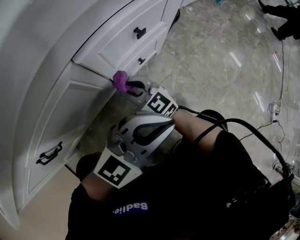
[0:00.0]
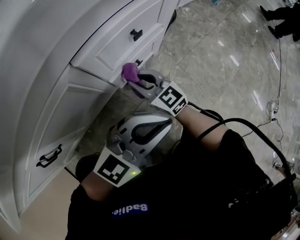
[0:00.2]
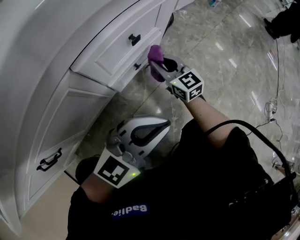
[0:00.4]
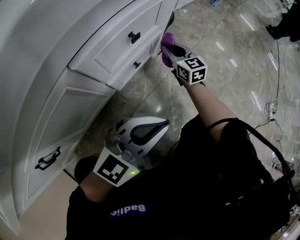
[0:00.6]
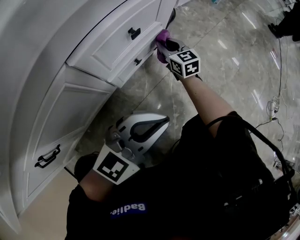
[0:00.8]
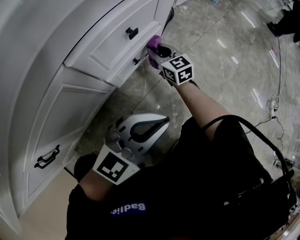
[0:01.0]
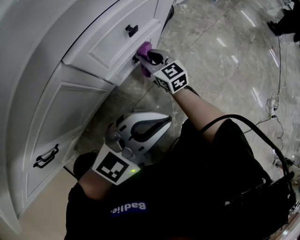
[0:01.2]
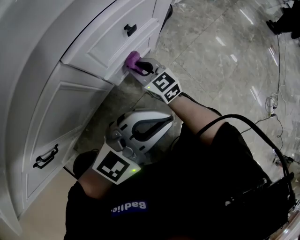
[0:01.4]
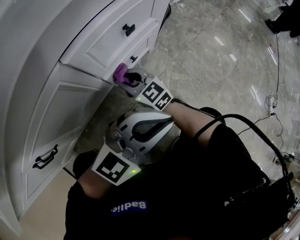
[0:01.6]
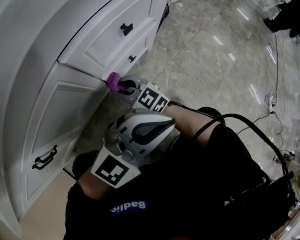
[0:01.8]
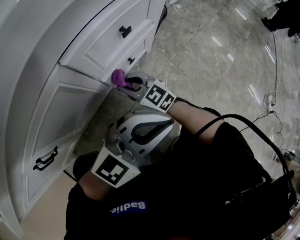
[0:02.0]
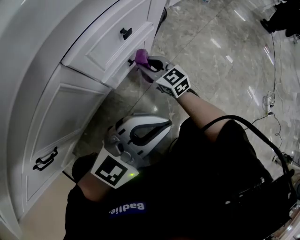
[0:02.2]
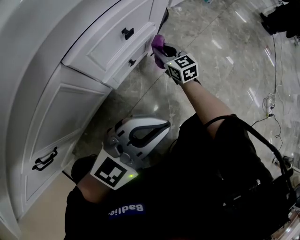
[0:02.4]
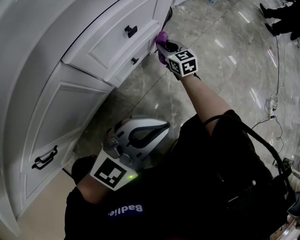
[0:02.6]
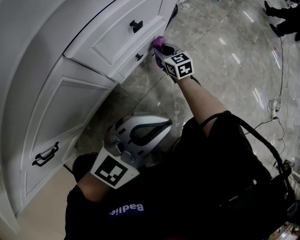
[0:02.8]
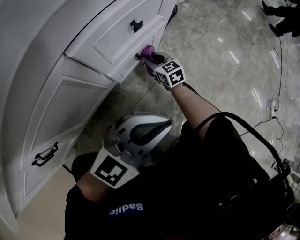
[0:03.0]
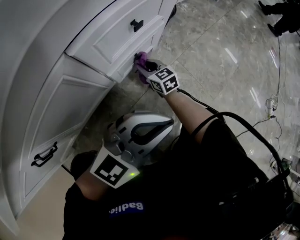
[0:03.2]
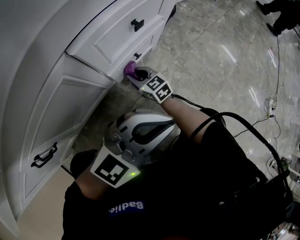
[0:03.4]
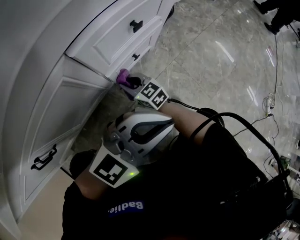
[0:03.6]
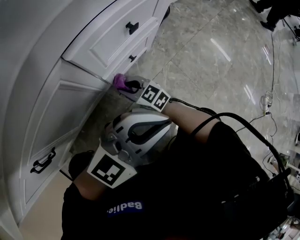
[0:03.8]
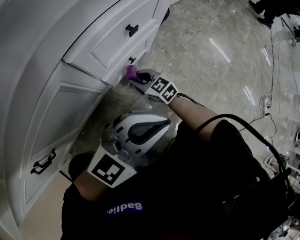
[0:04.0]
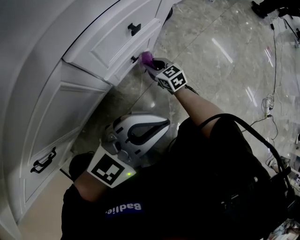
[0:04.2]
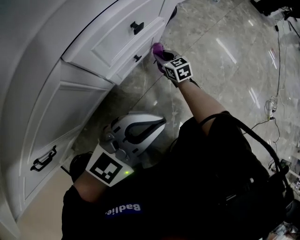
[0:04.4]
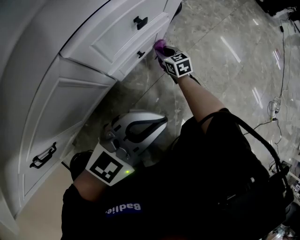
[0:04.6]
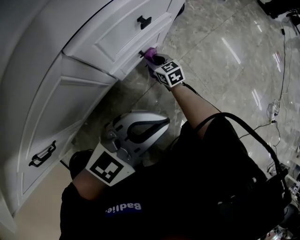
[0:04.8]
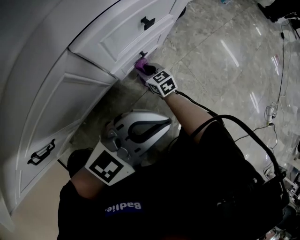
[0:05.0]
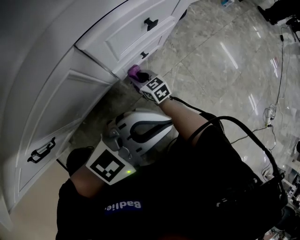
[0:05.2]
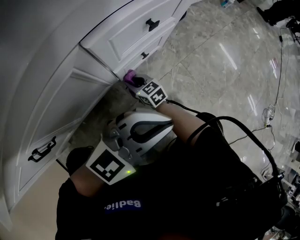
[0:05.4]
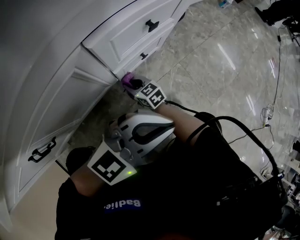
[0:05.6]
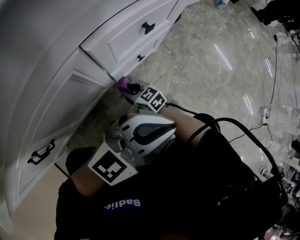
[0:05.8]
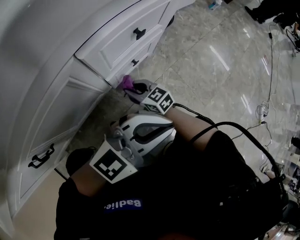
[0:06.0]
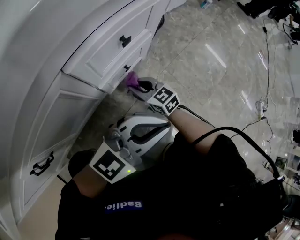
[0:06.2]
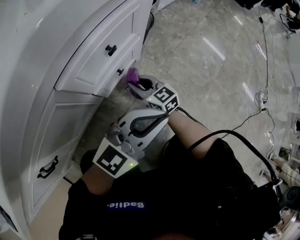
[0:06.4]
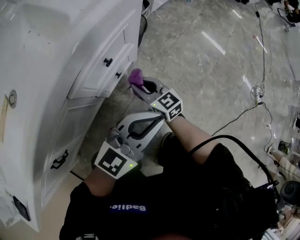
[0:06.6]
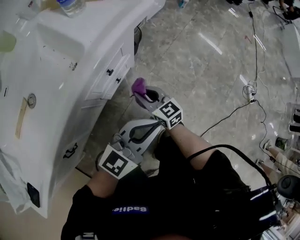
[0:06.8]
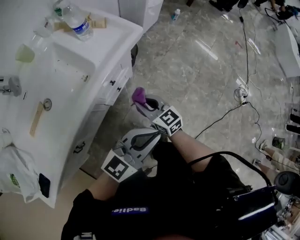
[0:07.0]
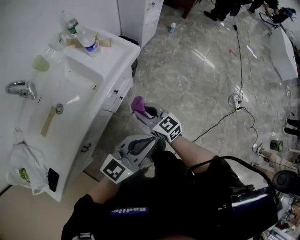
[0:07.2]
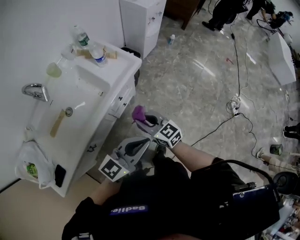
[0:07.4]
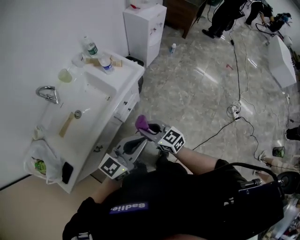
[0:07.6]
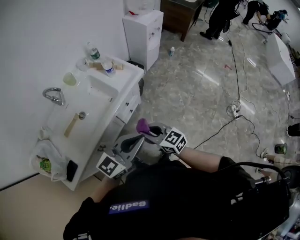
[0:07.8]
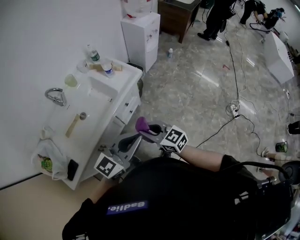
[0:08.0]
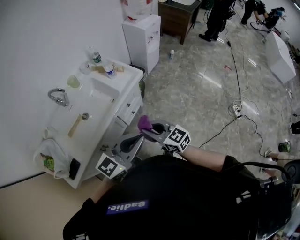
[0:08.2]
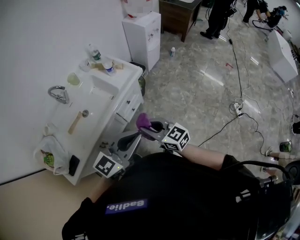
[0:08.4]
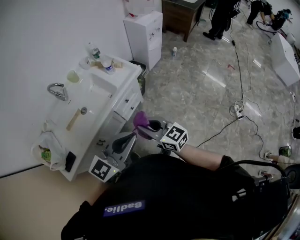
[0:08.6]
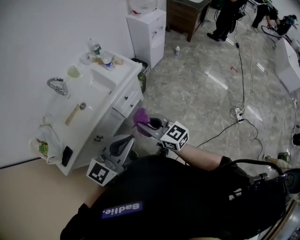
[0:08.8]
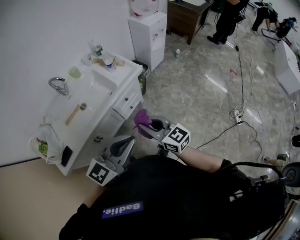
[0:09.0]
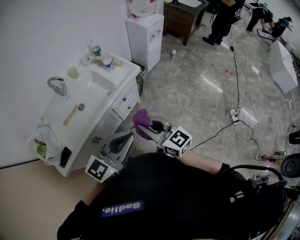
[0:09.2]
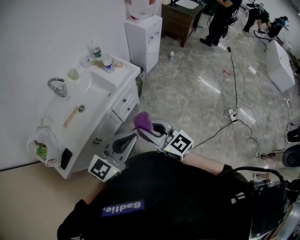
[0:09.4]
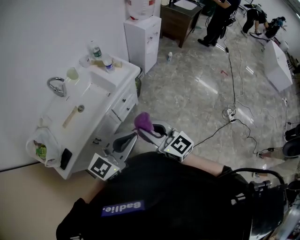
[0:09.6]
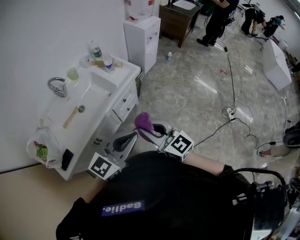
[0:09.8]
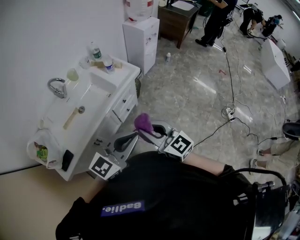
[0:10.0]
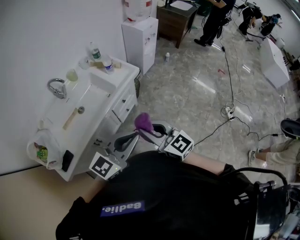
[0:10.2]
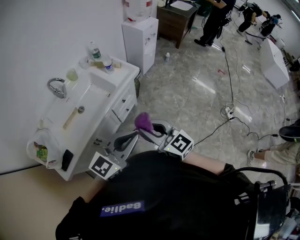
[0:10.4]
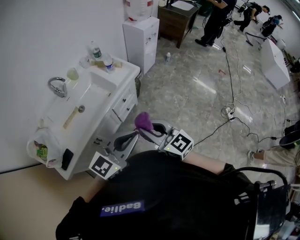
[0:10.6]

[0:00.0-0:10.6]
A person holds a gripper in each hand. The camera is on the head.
0:00.0 to 0:01.6: The right gripper travels forward and back again, some 20 cm each way.
0:01.6 to 0:03.0: The right gripper shifts by about 15 cm, and changes its angle by about 20 degrees.
0:04.6 to 0:06.0: The right gripper shifts by approximately 20 cm, and turns by some 30 degrees.
0:06.0 to 0:07.6: The two grippers go about 60 cm upward. The left gripper turns by roughly 20 degrees.
0:07.6 to 0:09.0: Both grippers travel together upward and backward, approximately 15 cm.
0:09.0 to 0:10.6: The left gripper shifts by about 5 cm, while the right gripper heads backward, covering approximately 5 cm.

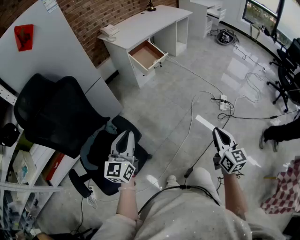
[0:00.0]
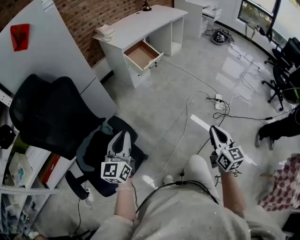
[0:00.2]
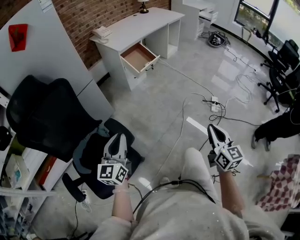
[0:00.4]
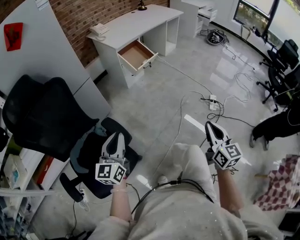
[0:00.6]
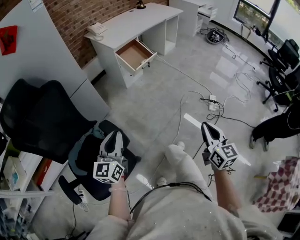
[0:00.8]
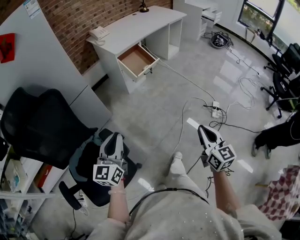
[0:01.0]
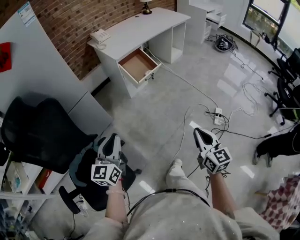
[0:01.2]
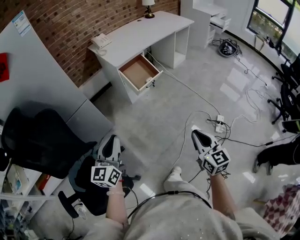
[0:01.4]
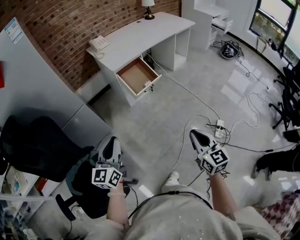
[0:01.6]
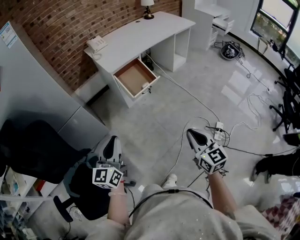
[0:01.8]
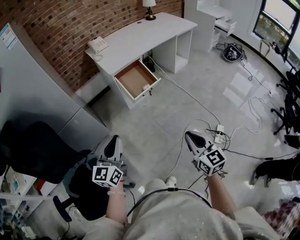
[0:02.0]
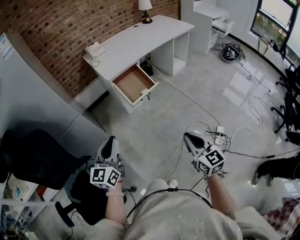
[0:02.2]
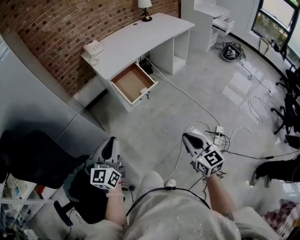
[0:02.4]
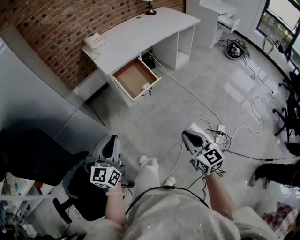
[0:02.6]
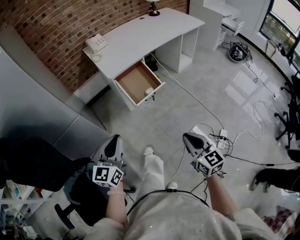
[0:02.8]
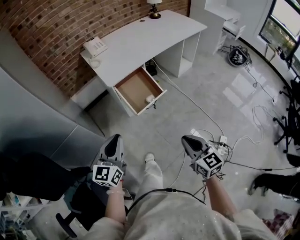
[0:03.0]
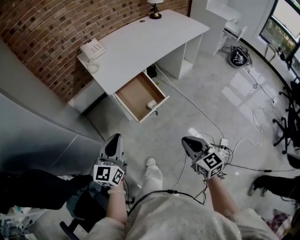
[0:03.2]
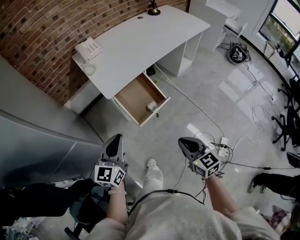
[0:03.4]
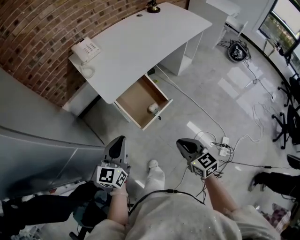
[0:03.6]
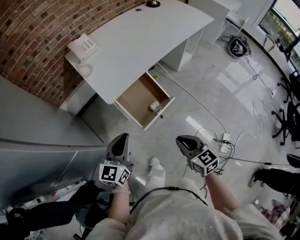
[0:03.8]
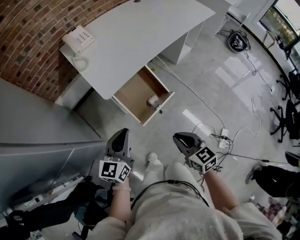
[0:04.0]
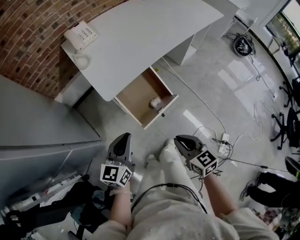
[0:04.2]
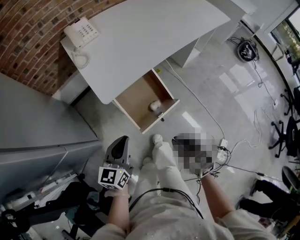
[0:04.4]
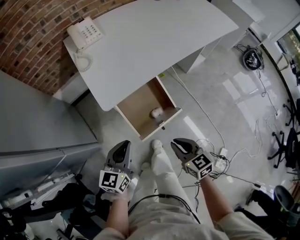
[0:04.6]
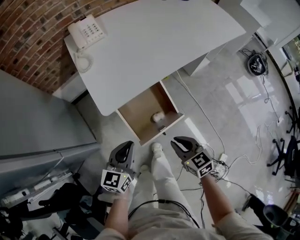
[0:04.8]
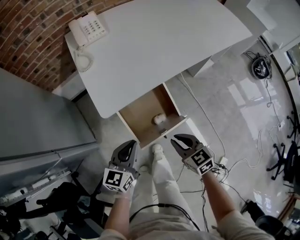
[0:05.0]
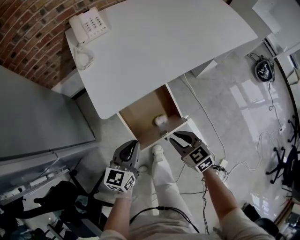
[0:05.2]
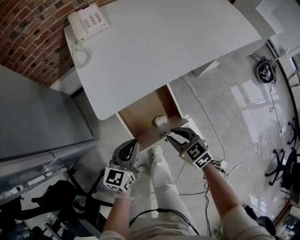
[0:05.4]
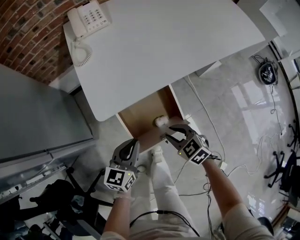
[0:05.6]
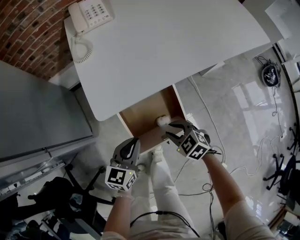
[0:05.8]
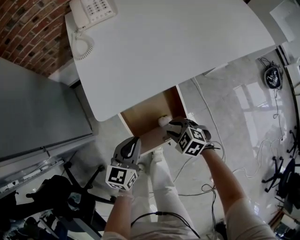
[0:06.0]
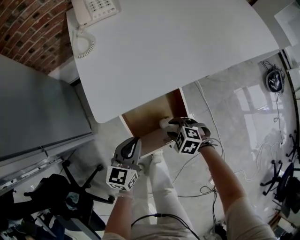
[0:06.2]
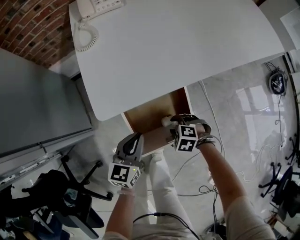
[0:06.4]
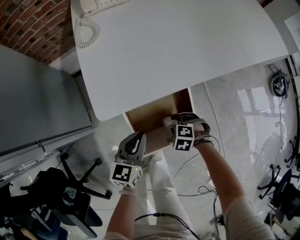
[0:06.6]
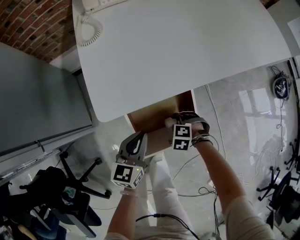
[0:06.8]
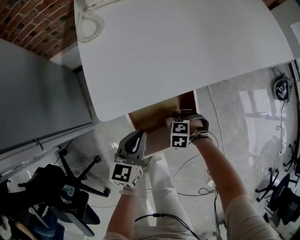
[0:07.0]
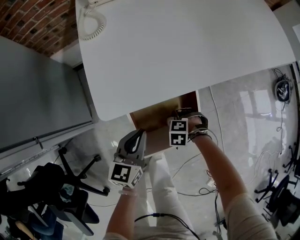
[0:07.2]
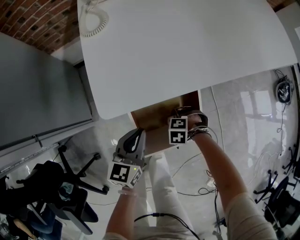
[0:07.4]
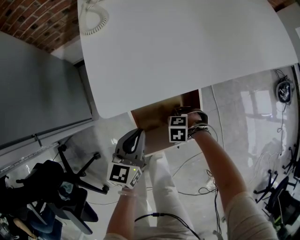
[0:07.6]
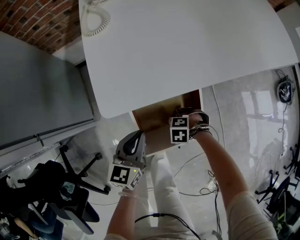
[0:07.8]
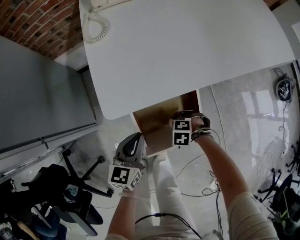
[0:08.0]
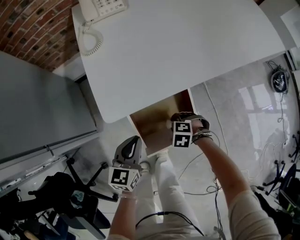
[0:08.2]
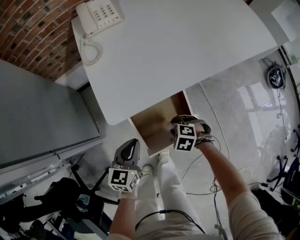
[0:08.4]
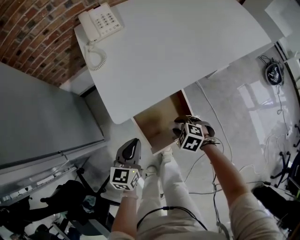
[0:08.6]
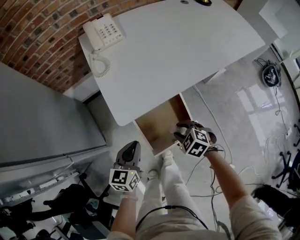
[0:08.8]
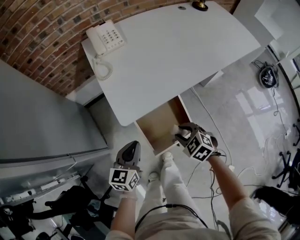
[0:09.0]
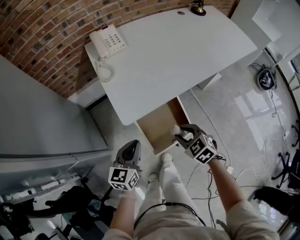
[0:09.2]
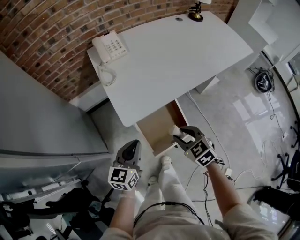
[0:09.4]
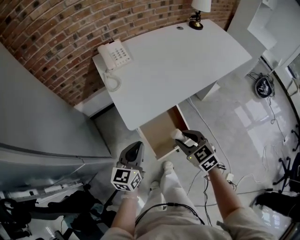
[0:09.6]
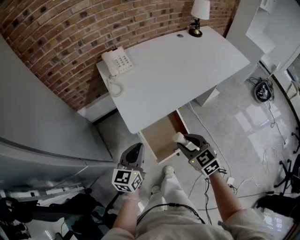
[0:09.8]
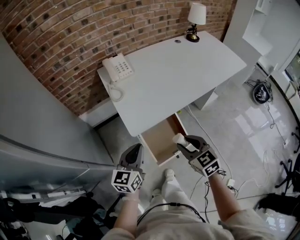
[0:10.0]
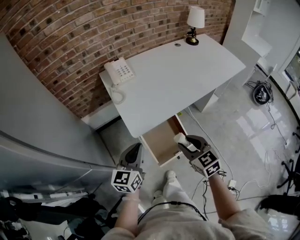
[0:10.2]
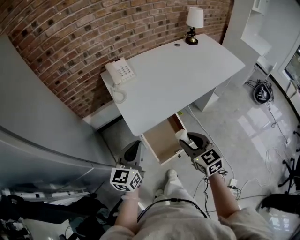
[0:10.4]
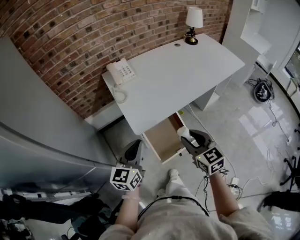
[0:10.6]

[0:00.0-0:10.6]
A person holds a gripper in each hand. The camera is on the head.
0:00.0 to 0:01.6: The grippers both shift forward by about 25 cm.
0:01.6 to 0:03.0: The grippers both shift forward by roughly 20 cm.
0:03.0 to 0:04.6: Both grippers move forward and downward, roughly 30 cm. The right gripper changes its angle by some 20 degrees.
0:04.6 to 0:06.0: The left gripper is displaced downward, forward and to the right by approximately 15 cm. The right gripper shifts about 20 cm downward and forward, swivels approximately 50 degrees, and opens.
0:06.0 to 0:07.6: The right gripper is displaced downward by roughly 15 cm, and rotates about 40 degrees.
0:07.6 to 0:09.0: The left gripper travels upward by roughly 10 cm. The right gripper heads upward, covering roughly 25 cm, and swivels some 50 degrees.
0:09.0 to 0:10.6: The two grippers go about 20 cm upward. The right gripper points its fingers approximately 40 degrees further upward.

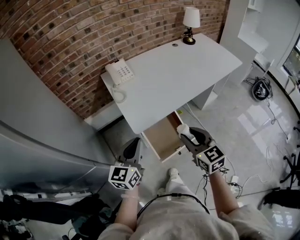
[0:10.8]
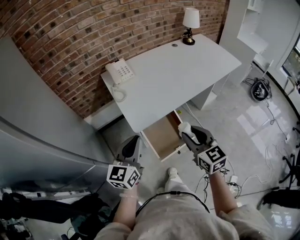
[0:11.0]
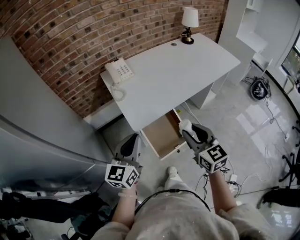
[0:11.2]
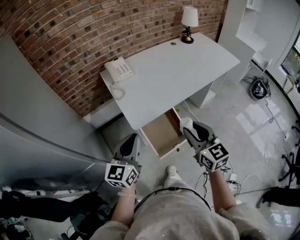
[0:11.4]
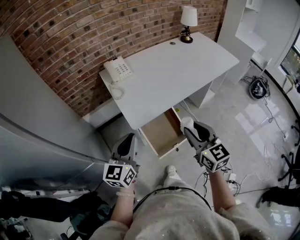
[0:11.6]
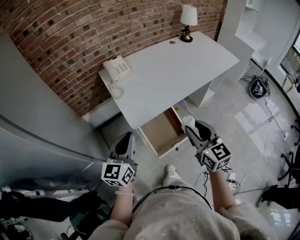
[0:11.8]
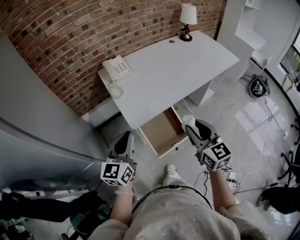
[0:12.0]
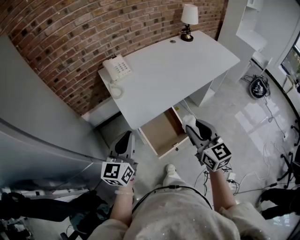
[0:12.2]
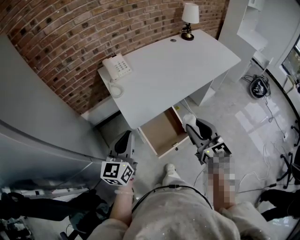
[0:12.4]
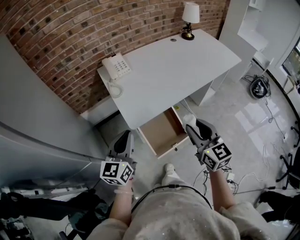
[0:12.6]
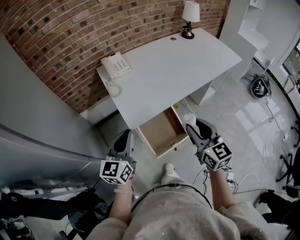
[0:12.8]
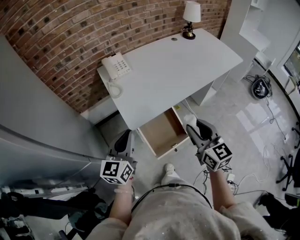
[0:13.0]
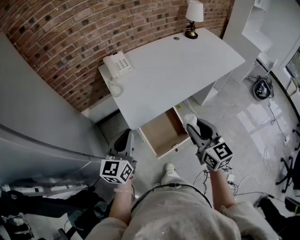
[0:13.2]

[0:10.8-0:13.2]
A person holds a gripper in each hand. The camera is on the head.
0:10.8 to 0:12.0: The right gripper moves some 5 cm.
0:12.0 to 0:13.2: The grippers stay close to where they were, moving slightly.
